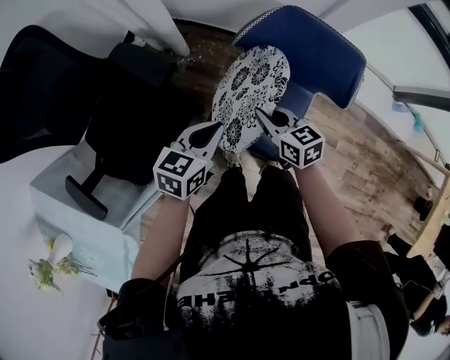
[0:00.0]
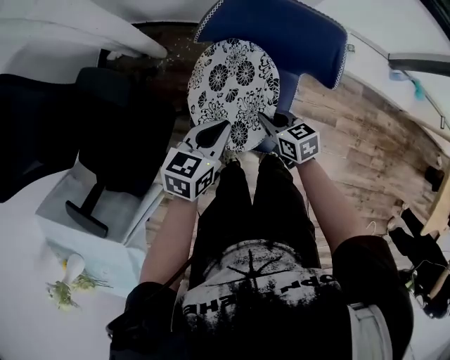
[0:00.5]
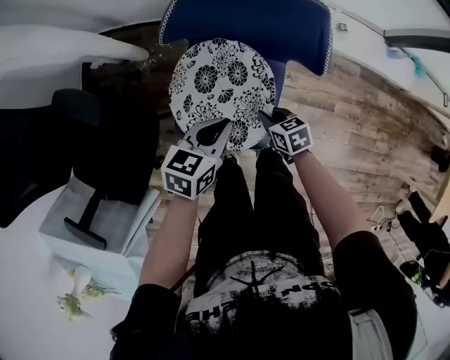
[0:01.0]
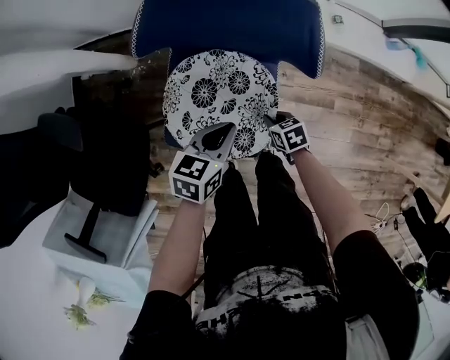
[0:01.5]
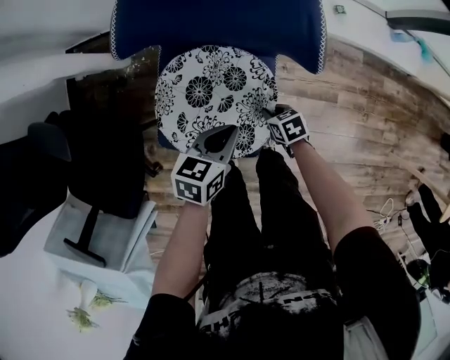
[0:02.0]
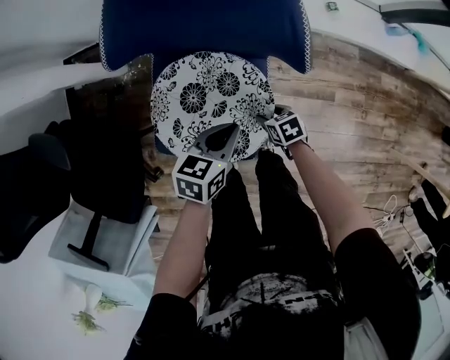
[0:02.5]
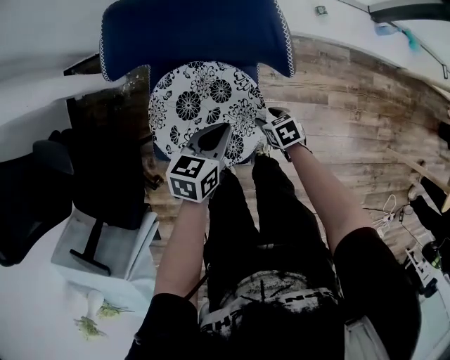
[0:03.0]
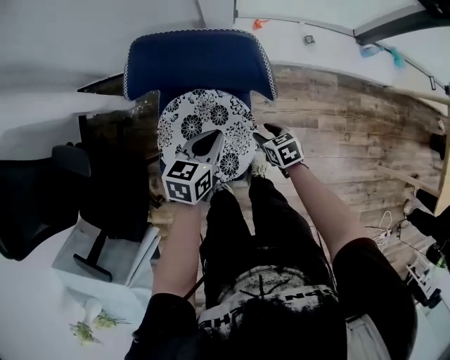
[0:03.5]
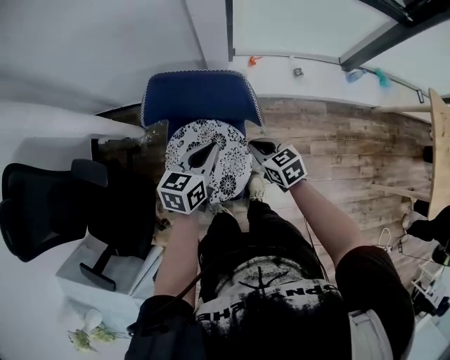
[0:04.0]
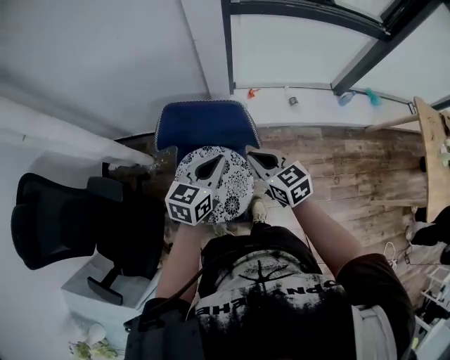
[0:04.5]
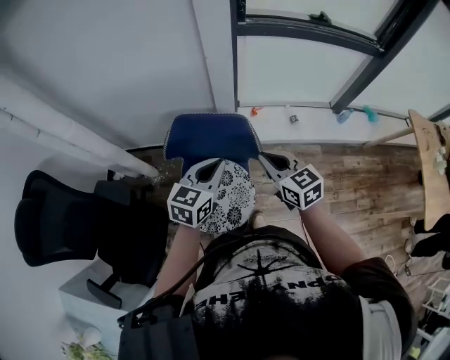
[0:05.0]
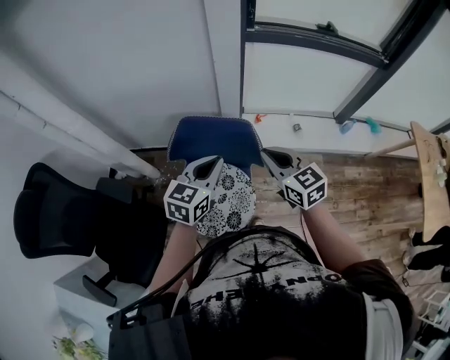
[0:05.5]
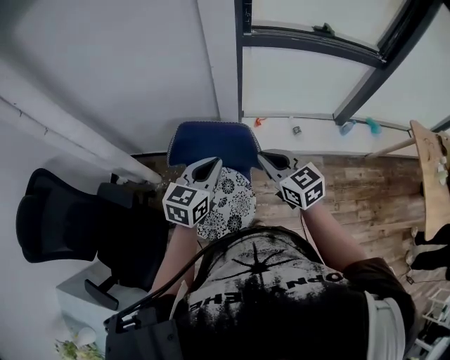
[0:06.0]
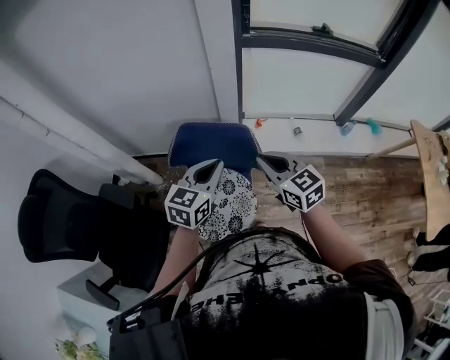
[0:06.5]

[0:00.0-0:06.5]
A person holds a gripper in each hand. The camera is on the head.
0:00.0 to 0:02.0: Both grippers move downward and to the right, roughly 30 cm. The right gripper points its fingers approximately 30 degrees further downward.
0:02.0 to 0:04.5: The right gripper shifts about 40 cm upward, tips its fingers upward by about 40 degrees, and opens and closes again. Meanwhile the left gripper heads upward, covering roughly 25 cm, and rotates roughly 30 degrees.
0:04.5 to 0:06.5: The two grippers go approximately 10 cm upward.

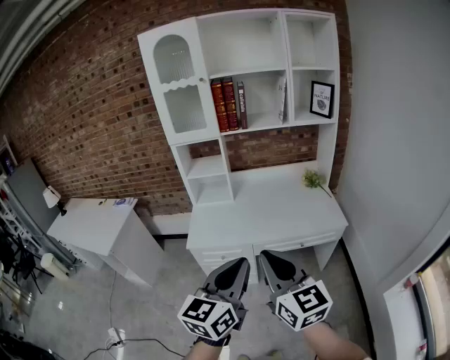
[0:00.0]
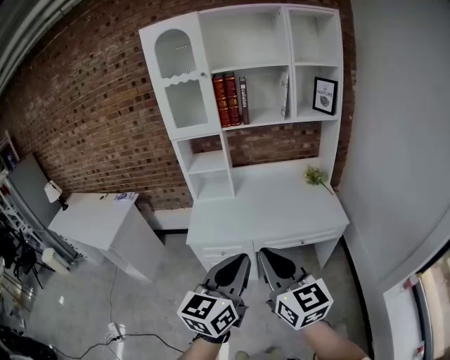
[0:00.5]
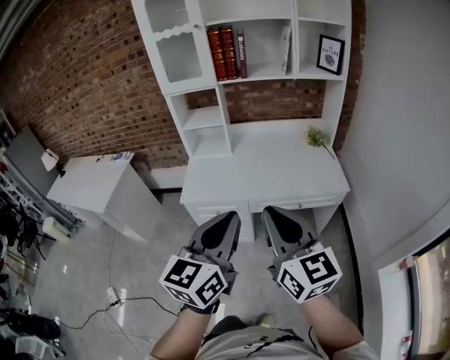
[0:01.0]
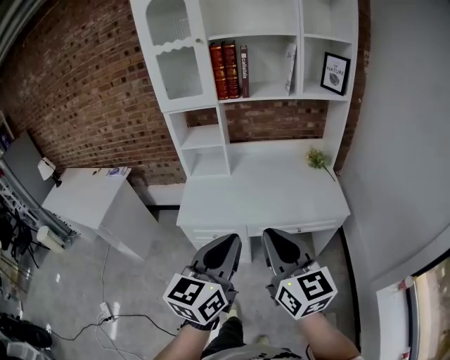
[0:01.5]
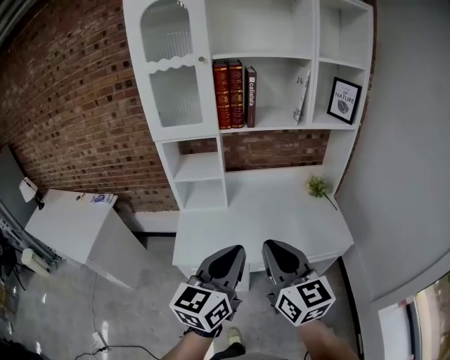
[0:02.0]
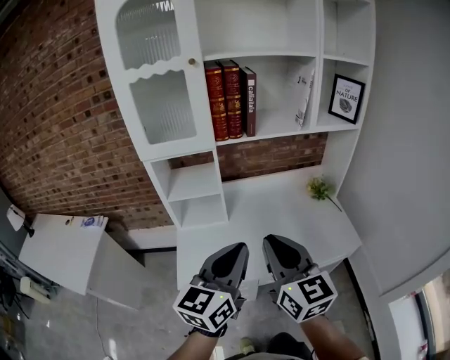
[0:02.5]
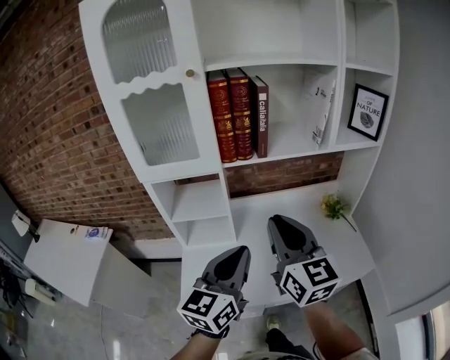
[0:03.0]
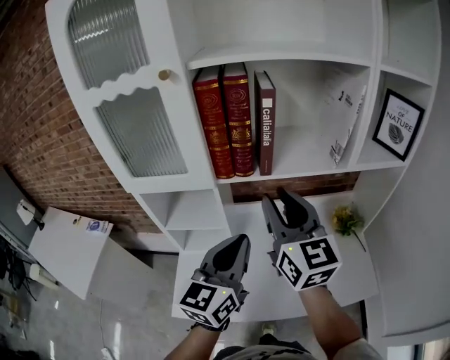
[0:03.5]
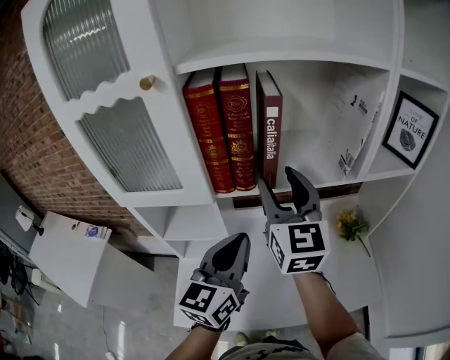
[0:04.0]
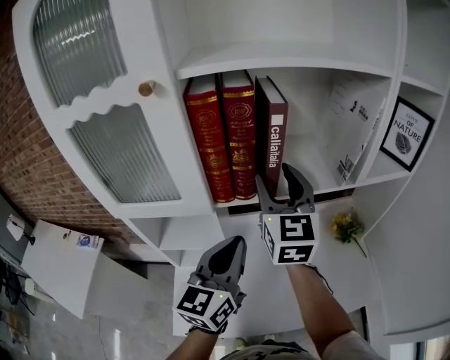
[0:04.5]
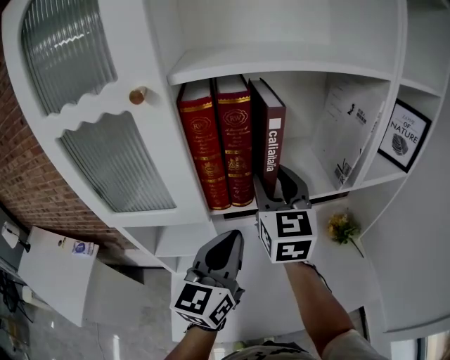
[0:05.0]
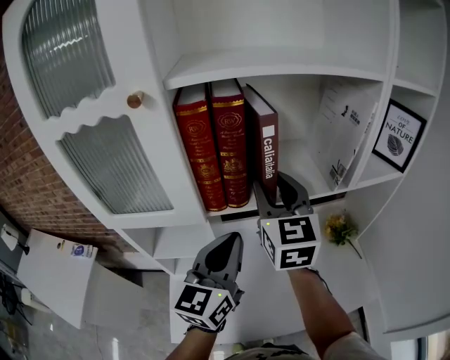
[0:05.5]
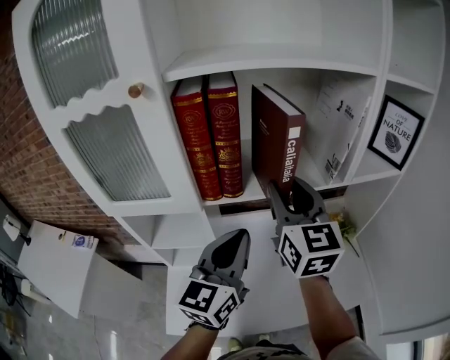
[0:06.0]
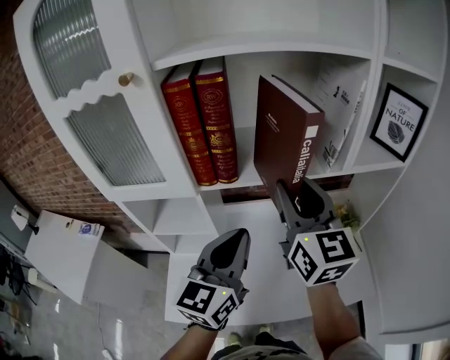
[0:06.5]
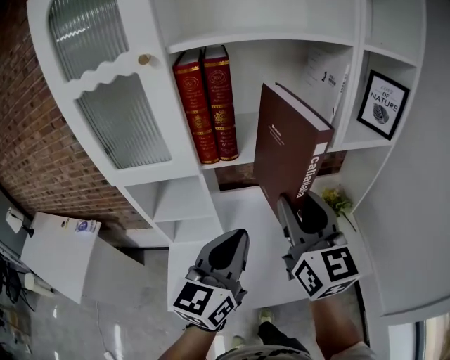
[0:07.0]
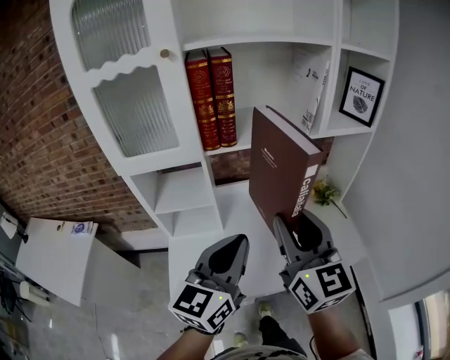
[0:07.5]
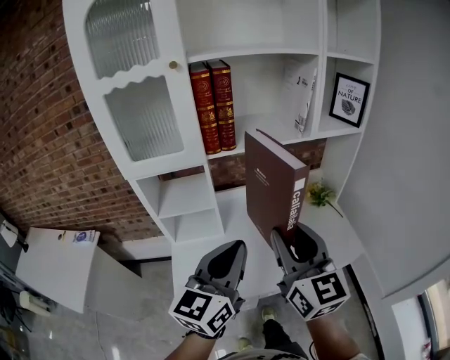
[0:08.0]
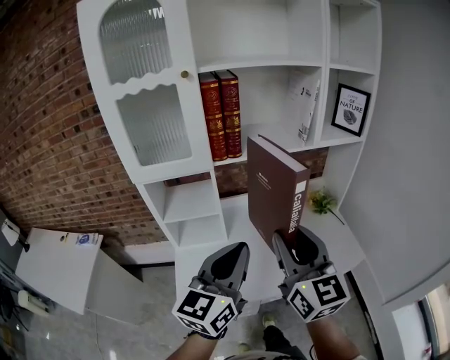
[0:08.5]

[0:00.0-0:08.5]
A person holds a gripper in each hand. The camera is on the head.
0:00.0 to 0:02.0: Both grippers move forward, approximately 20 cm.
0:02.0 to 0:04.0: Both grippers are carried forward, about 50 cm. The right gripper opens its fingers.
0:04.0 to 0:06.5: The right gripper goes approximately 5 cm to the right.
0:06.5 to 0:08.5: The two grippers go approximately 25 cm backward.

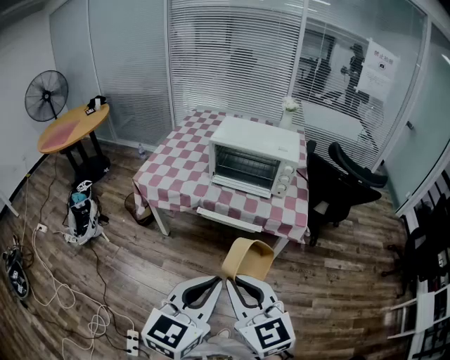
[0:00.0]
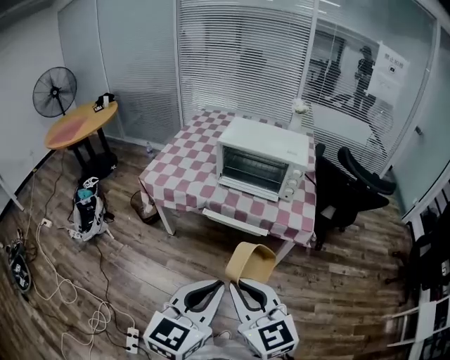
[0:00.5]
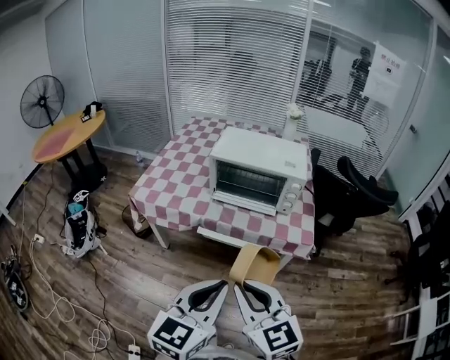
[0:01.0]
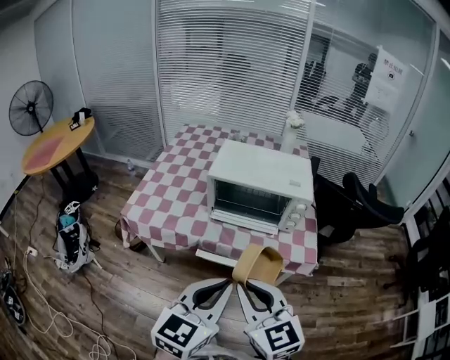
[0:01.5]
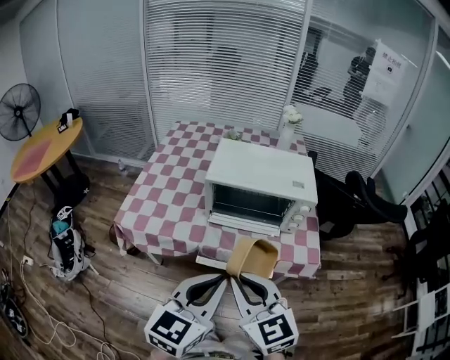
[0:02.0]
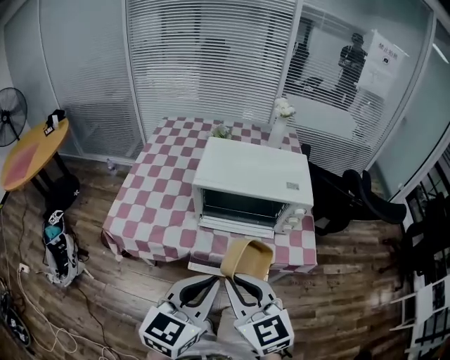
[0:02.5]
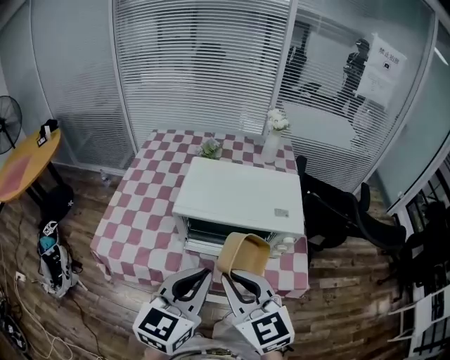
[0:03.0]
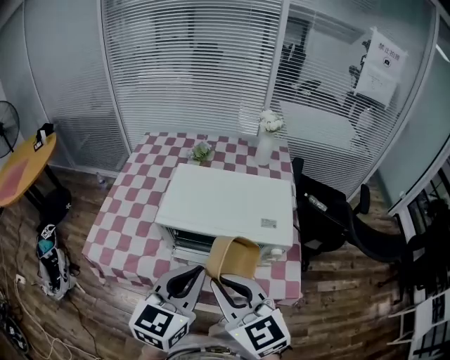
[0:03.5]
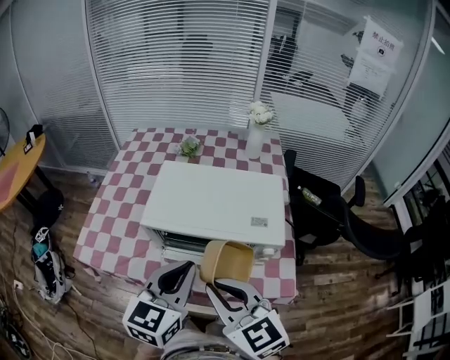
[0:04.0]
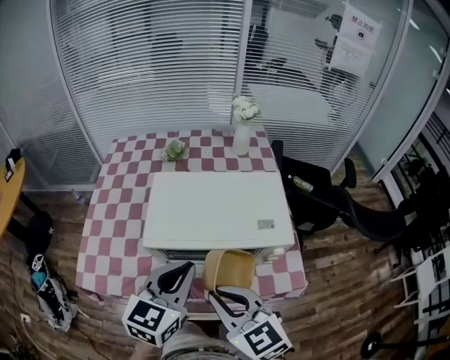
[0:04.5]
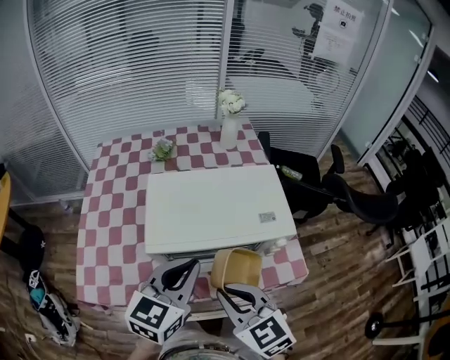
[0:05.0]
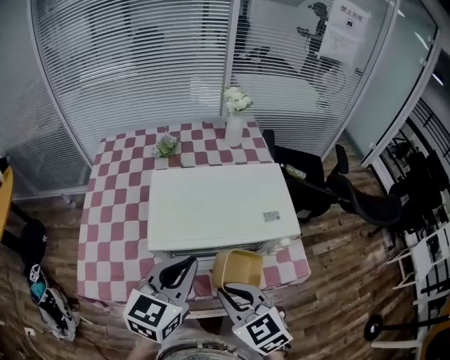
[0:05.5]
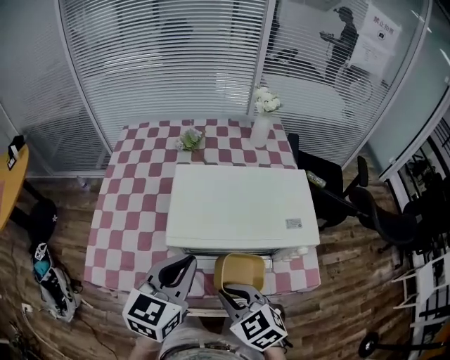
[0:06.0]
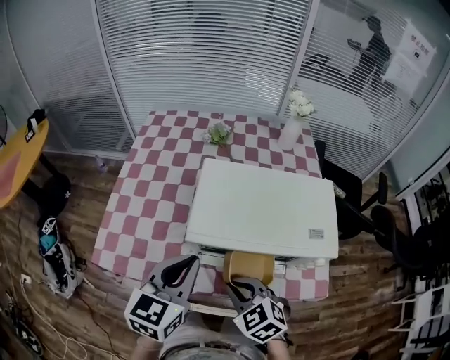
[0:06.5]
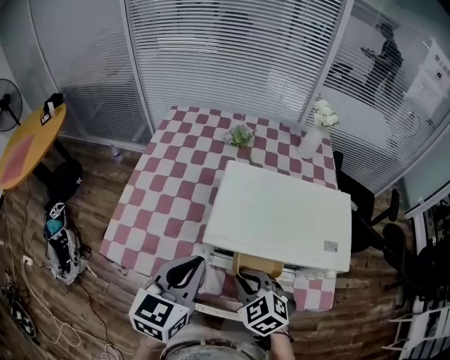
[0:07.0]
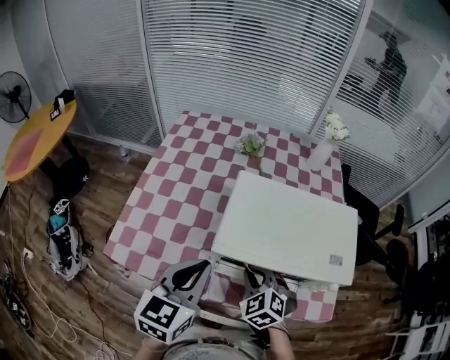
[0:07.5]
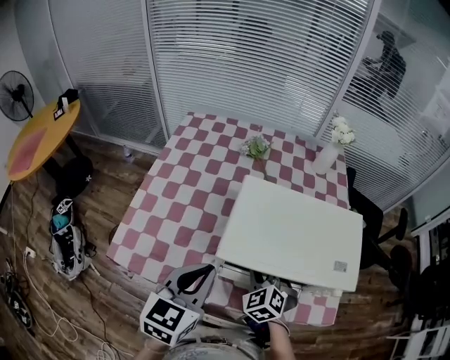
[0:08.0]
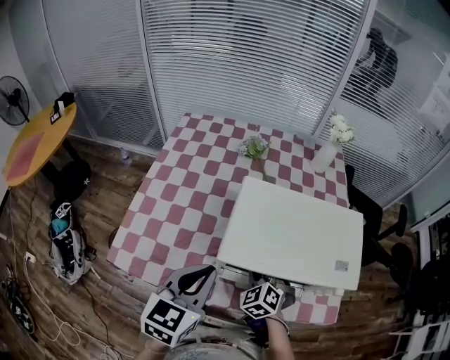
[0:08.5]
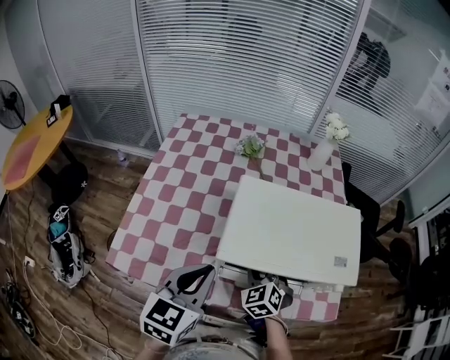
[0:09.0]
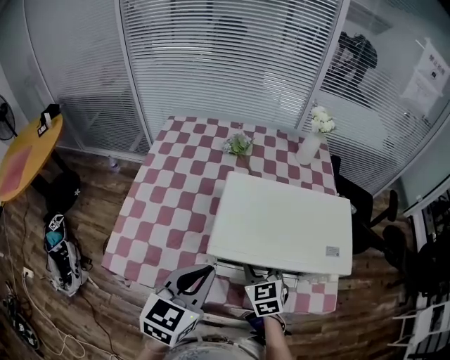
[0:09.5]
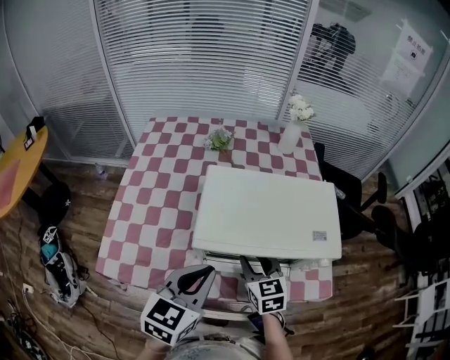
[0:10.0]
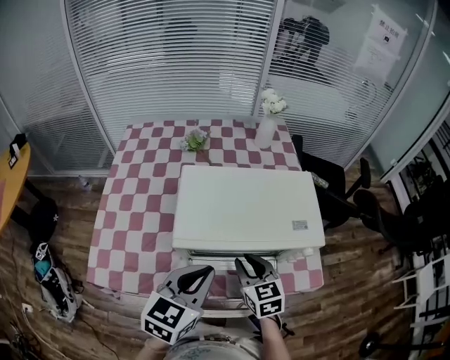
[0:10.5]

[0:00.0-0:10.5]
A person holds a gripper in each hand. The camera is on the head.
0:00.0 to 0:02.0: Both grippers move forward, some 25 cm.
0:02.0 to 0:04.0: The right gripper shifts approximately 20 cm forward and to the right. The left gripper travels forward by approximately 20 cm.
0:04.0 to 0:06.5: The right gripper is displaced downward and to the left by some 20 cm, and rotates approximately 30 degrees. Meanwhile the left gripper travels to the left and forward by approximately 15 cm.
0:06.5 to 0:08.5: The right gripper shifts roughly 15 cm forward and downward, and swivels about 20 degrees.
0:08.5 to 0:10.5: The right gripper heads to the right and upward, covering approximately 10 cm, and rolls clockwise, seen from behind, by approximately 50 degrees; the left gripper moves to the right, about 10 cm.

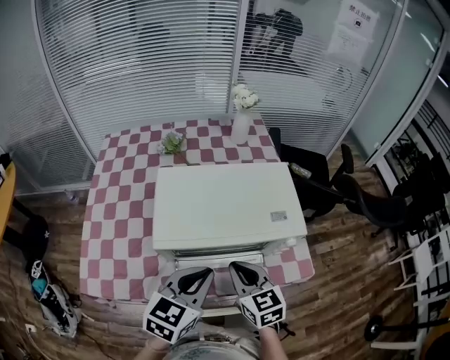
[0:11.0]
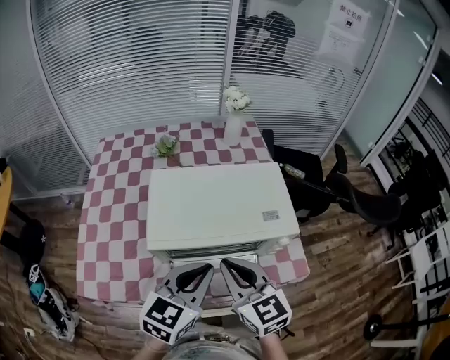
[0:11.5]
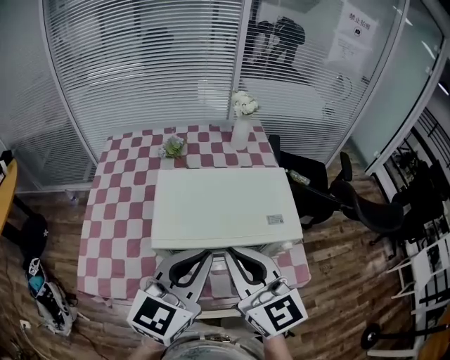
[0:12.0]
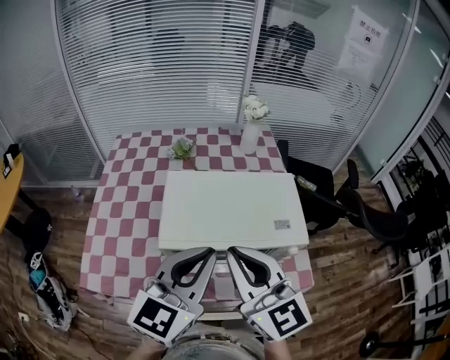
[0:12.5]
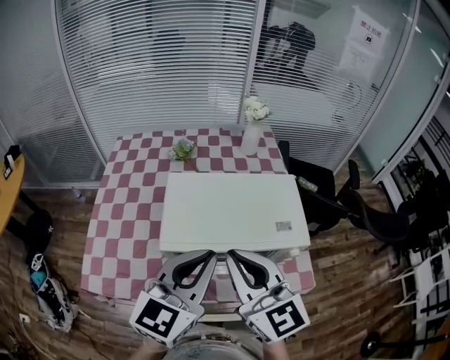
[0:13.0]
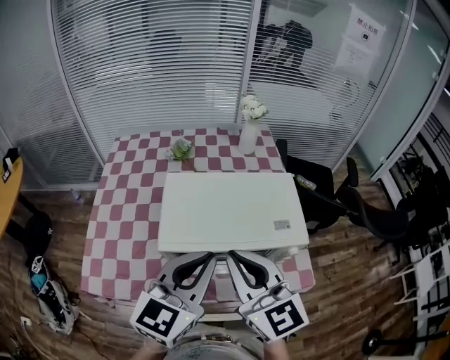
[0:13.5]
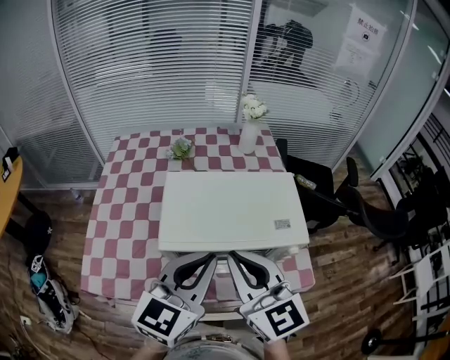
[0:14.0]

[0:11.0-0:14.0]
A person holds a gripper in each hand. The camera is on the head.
0:11.0 to 0:12.5: The right gripper goes some 20 cm upward, and swivels some 30 degrees; the left gripper travels upward by roughly 10 cm, and rotates about 20 degrees.
0:12.5 to 0:14.0: The grippers move only a little.
